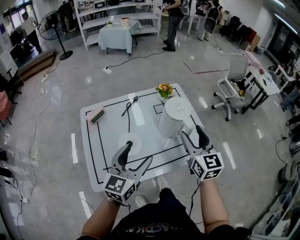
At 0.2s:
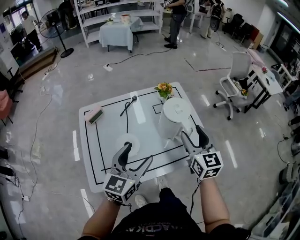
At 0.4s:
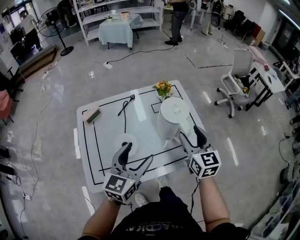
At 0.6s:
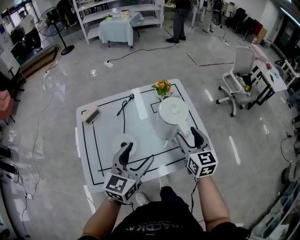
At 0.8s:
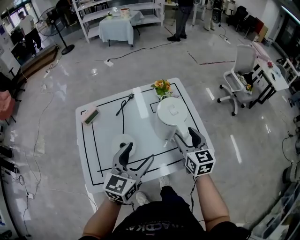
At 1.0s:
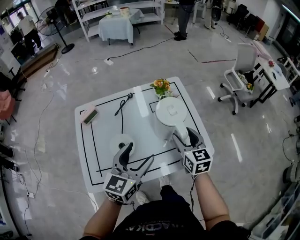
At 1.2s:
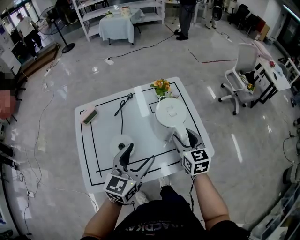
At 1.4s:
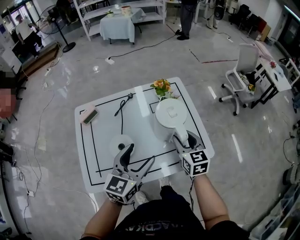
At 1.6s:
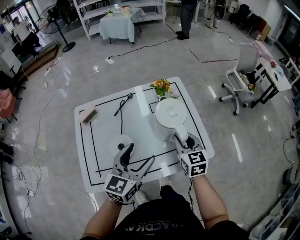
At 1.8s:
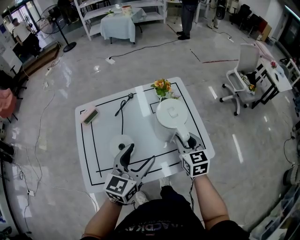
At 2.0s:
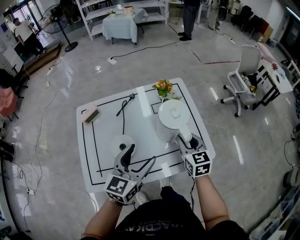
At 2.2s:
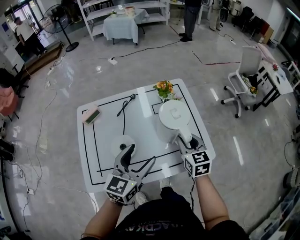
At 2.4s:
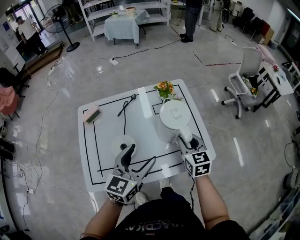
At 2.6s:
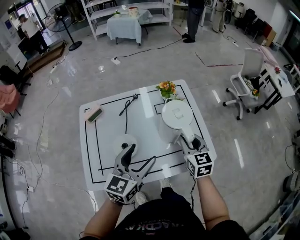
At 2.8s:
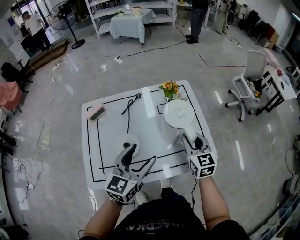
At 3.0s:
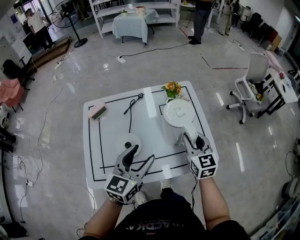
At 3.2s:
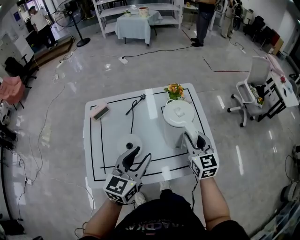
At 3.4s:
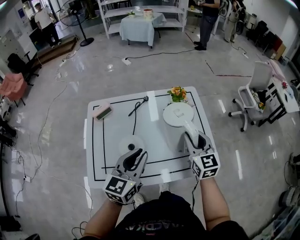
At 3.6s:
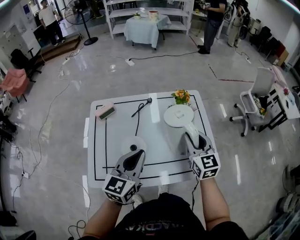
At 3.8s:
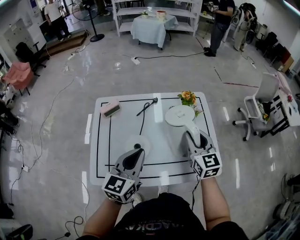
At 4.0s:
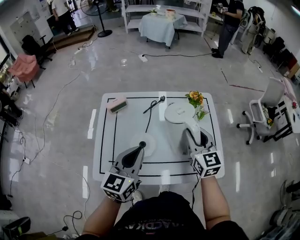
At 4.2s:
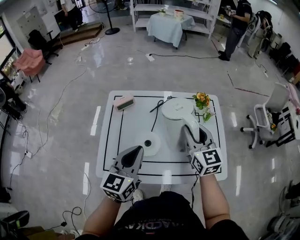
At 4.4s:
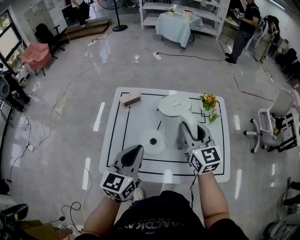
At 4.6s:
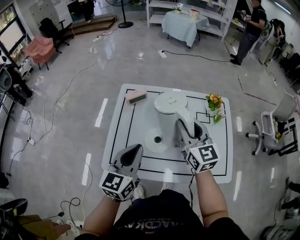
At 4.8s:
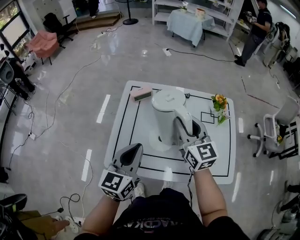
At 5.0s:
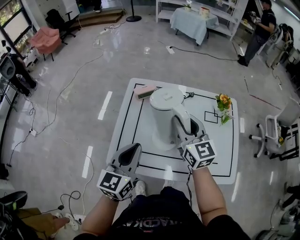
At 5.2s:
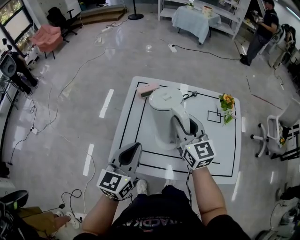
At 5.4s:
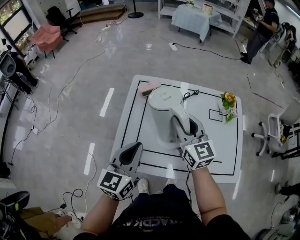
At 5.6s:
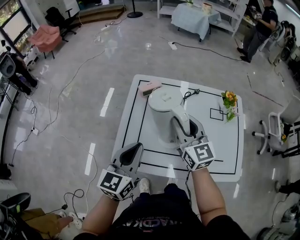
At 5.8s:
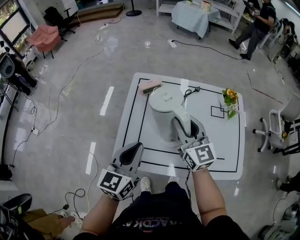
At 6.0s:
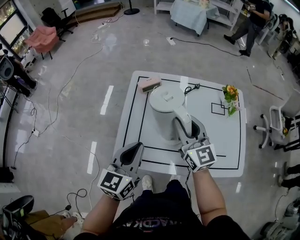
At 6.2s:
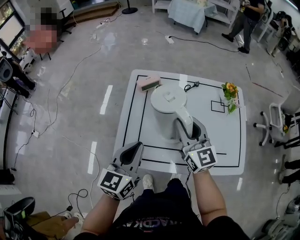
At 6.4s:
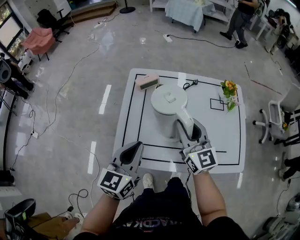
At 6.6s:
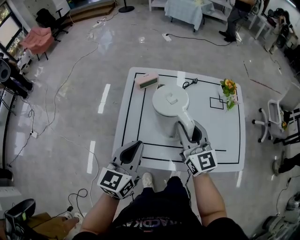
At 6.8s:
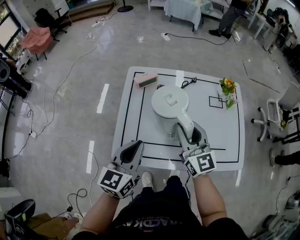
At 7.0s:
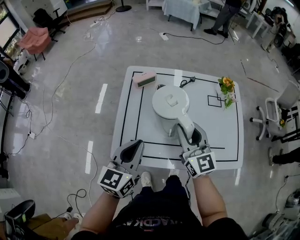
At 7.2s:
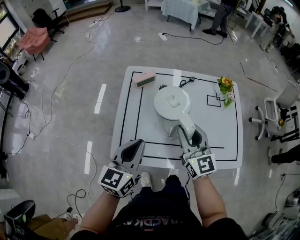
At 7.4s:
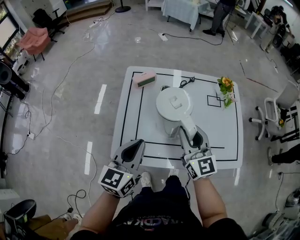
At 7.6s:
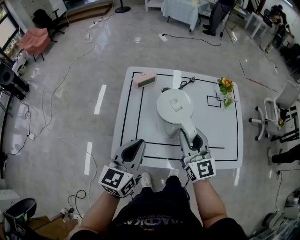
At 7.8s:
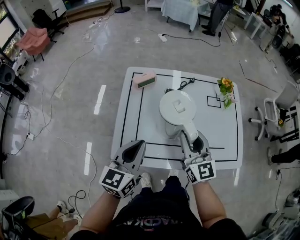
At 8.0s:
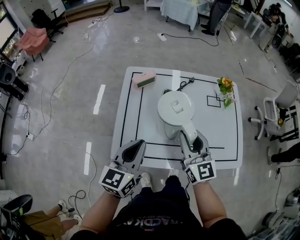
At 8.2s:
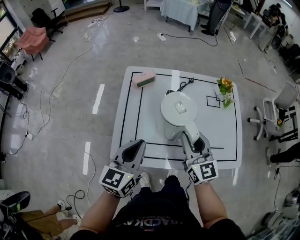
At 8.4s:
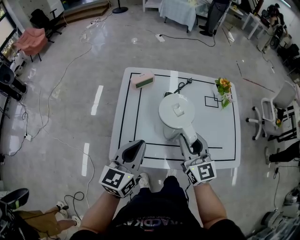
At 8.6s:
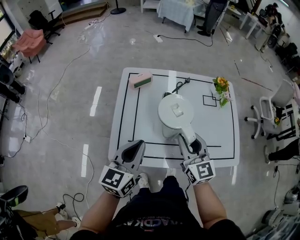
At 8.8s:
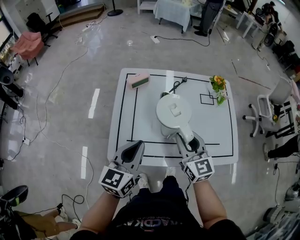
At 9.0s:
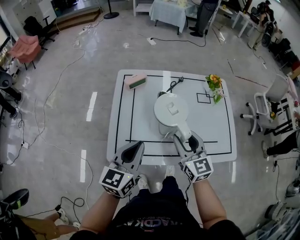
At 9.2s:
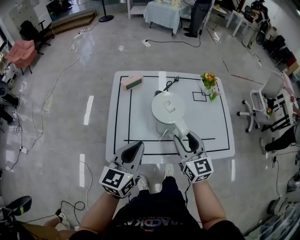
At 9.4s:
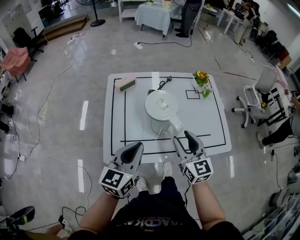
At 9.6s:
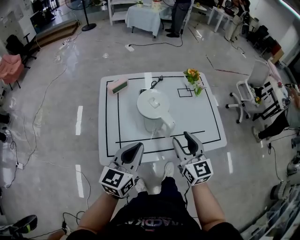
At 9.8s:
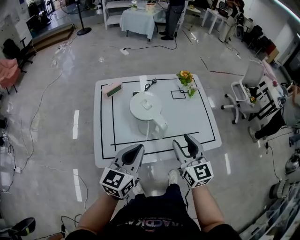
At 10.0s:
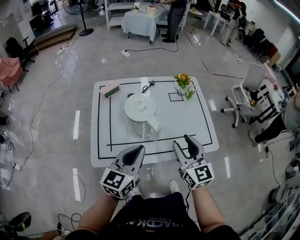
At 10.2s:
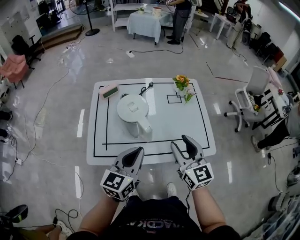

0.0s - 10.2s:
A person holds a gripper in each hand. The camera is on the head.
0.0s - 1.4s: The left gripper heads to the right and forward, covering about 10 cm; the right gripper heads downward and forward, covering roughly 15 cm.
1.4s - 3.0s: The grippers move only a little.
3.0s - 4.4s: The right gripper heads to the left and upward, covering some 20 cm, and changes its angle by roughly 20 degrees. The left gripper goes approximately 15 cm to the left, turns by approximately 20 degrees, and closes its fingers.
4.4s - 5.8s: The grippers both shift to the left by approximately 10 cm.
5.8s - 7.2s: The right gripper heads backward, covering about 5 cm.
7.2s - 8.8s: The grippers make only small movements.
8.8s - 10.2s: The right gripper is displaced to the right and backward by some 15 cm. The left gripper moves to the right, approximately 15 cm.

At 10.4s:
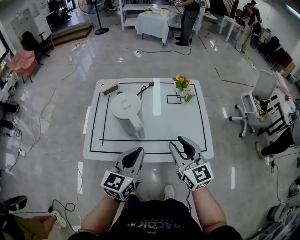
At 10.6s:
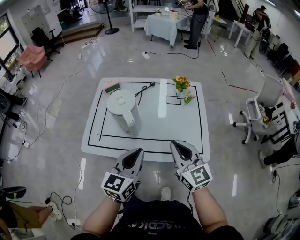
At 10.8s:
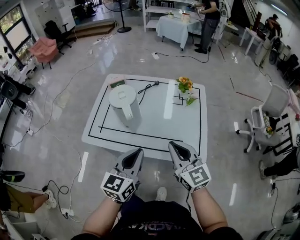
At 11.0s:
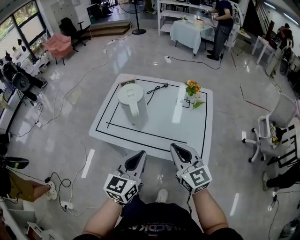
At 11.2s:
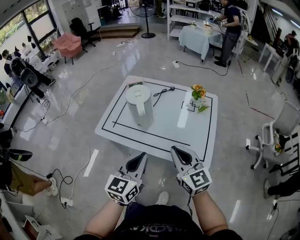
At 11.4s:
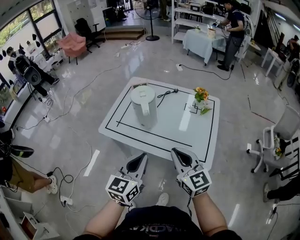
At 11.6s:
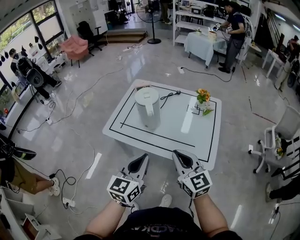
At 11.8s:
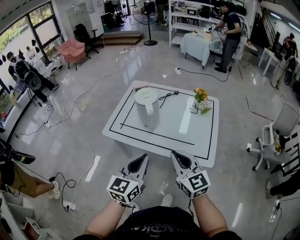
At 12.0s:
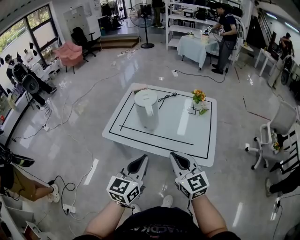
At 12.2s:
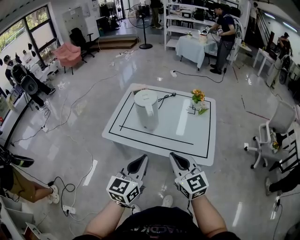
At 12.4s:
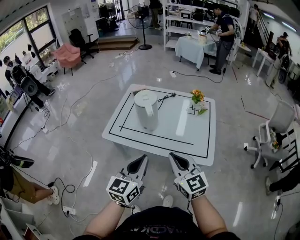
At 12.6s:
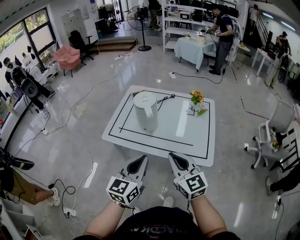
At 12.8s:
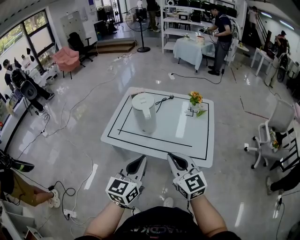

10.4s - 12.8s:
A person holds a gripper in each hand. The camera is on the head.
10.4s - 11.6s: The two grippers go about 10 cm backward. The left gripper changes its angle by roughly 20 degrees. Meanwhile the right gripper turns by approximately 20 degrees, and closes.
11.6s - 12.8s: The grippers make only small movements.

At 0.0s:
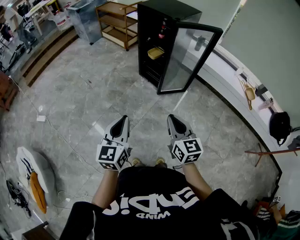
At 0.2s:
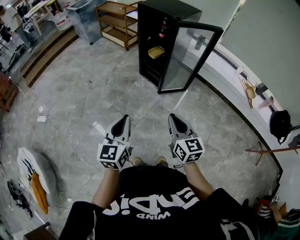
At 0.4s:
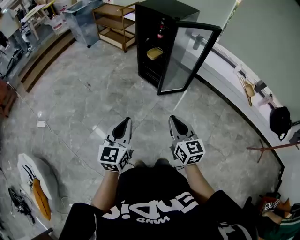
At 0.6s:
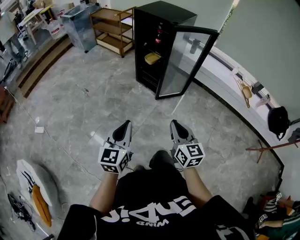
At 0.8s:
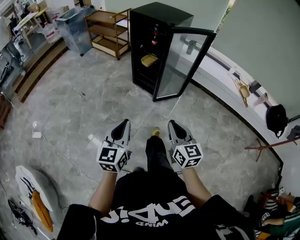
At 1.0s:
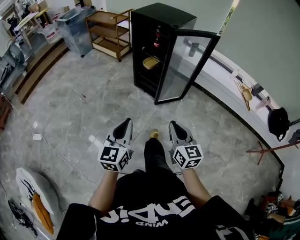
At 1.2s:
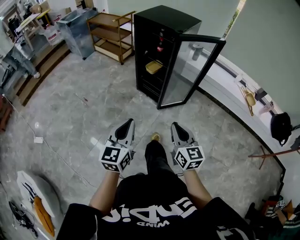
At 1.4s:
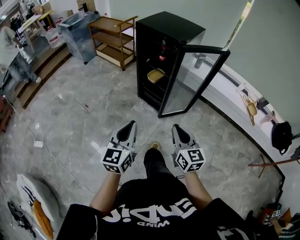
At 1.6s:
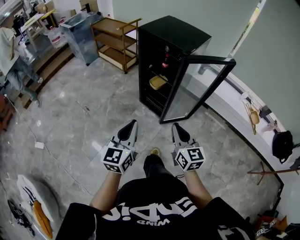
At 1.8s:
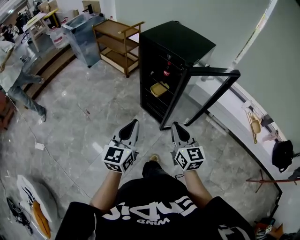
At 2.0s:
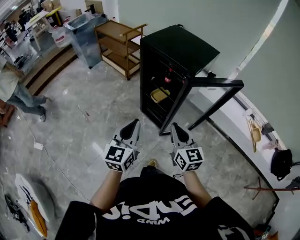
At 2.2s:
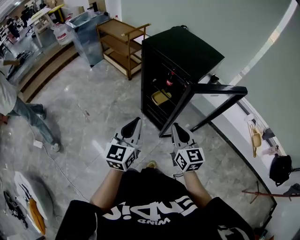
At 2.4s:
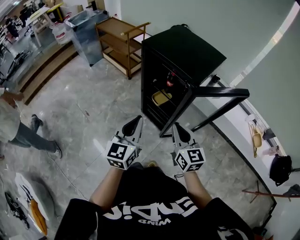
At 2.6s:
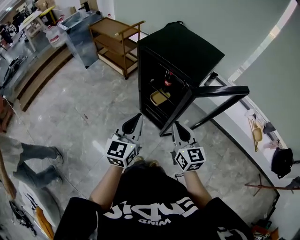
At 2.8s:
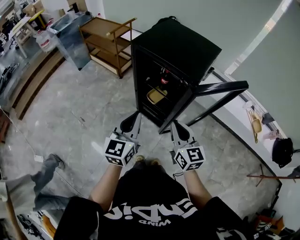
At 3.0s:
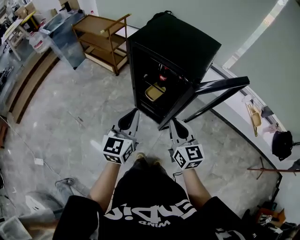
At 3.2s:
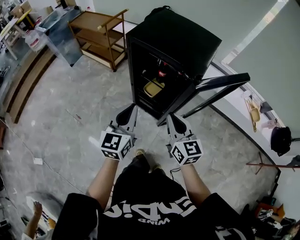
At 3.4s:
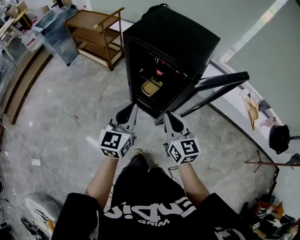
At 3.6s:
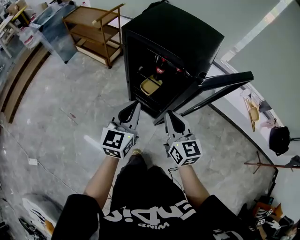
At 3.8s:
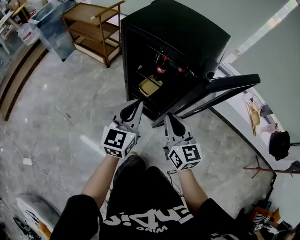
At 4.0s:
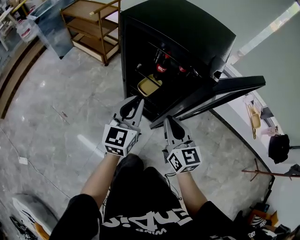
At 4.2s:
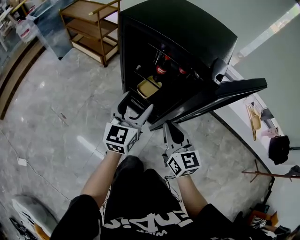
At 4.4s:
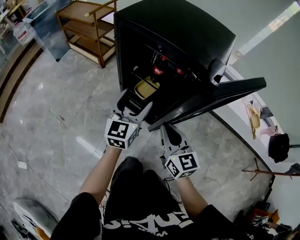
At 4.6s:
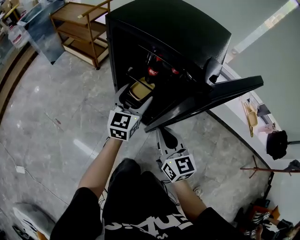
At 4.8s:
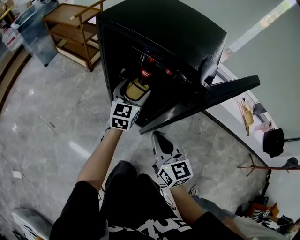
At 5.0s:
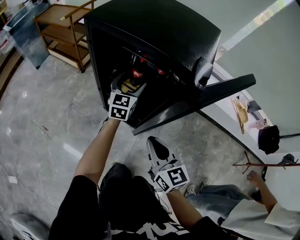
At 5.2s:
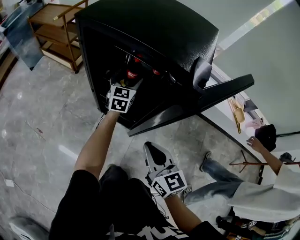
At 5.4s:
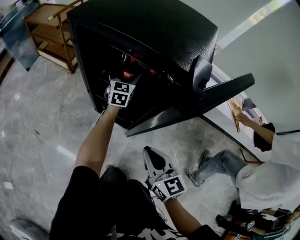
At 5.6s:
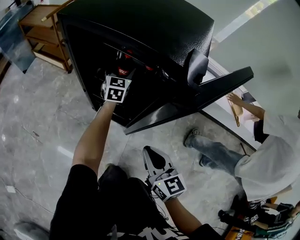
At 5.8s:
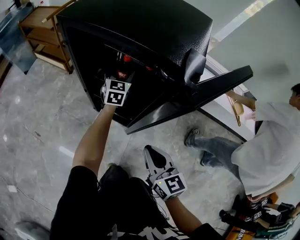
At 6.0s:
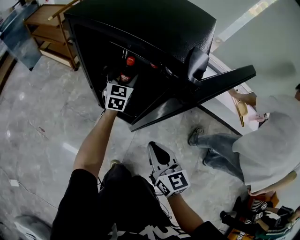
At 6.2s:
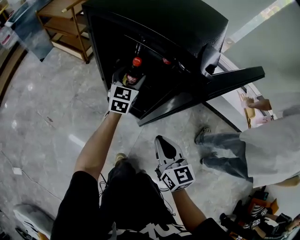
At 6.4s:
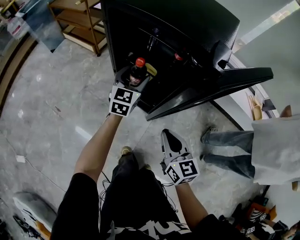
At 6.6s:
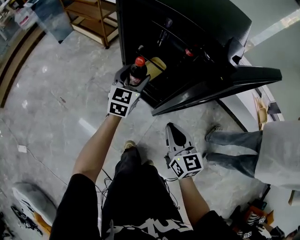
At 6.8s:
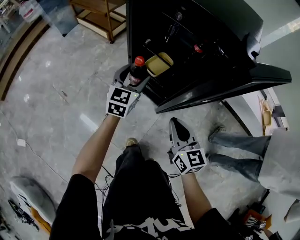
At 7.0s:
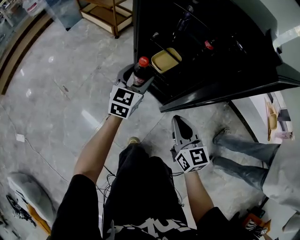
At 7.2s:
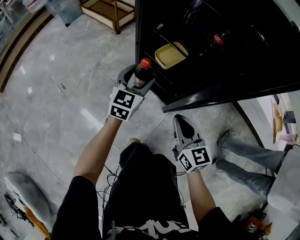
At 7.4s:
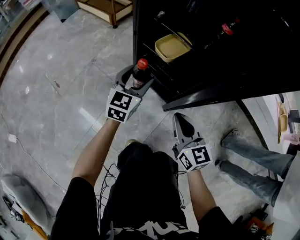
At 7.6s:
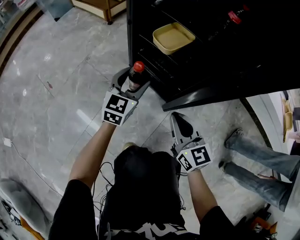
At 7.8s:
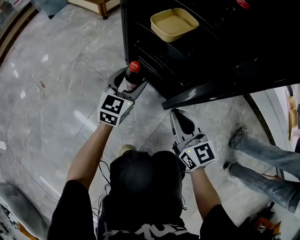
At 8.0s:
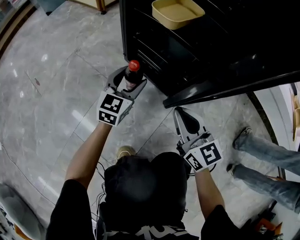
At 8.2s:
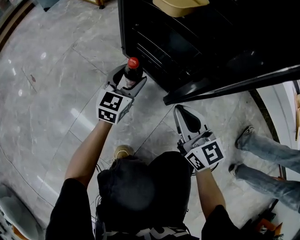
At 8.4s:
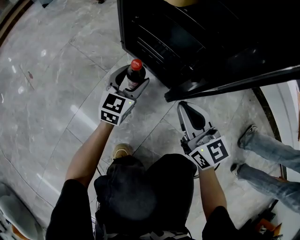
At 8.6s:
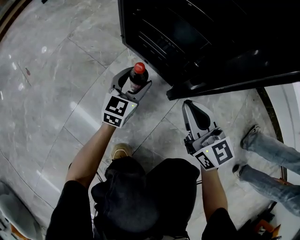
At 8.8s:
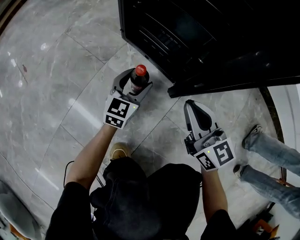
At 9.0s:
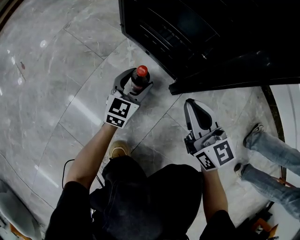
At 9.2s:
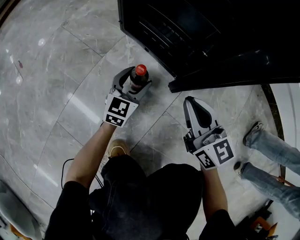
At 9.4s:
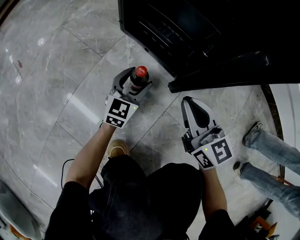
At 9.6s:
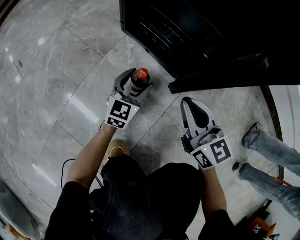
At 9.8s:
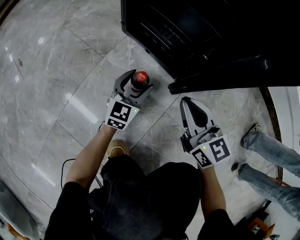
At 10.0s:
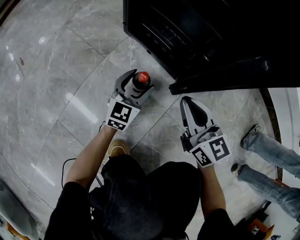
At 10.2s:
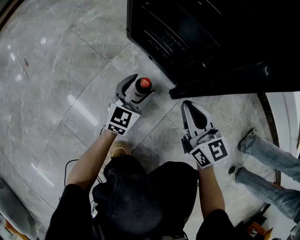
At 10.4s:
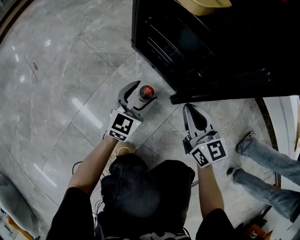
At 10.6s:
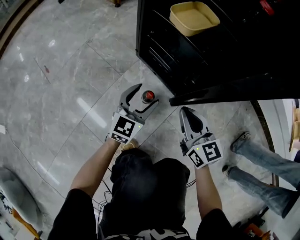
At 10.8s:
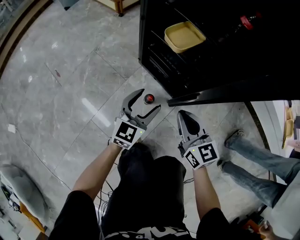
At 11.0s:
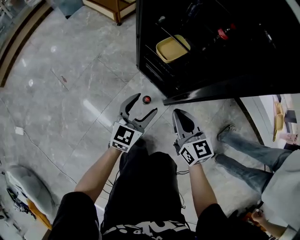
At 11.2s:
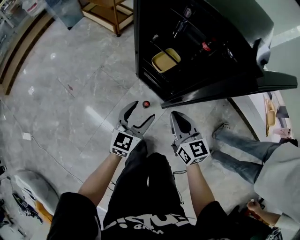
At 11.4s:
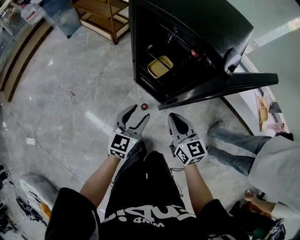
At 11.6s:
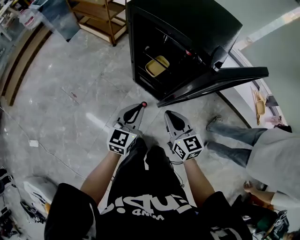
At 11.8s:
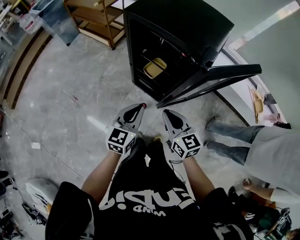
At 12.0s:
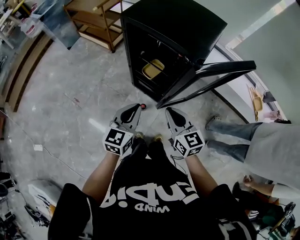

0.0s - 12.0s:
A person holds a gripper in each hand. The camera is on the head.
0.0s - 1.6s: Both grippers move forward, some 25 cm.
1.6s - 3.0s: Both grippers travel together forward, about 25 cm.
3.0s - 4.4s: The right gripper travels downward by some 15 cm. Meanwhile the left gripper goes approximately 20 cm downward and forward, and opens.
4.4s - 6.0s: The left gripper goes approximately 25 cm forward, downward and to the right; the right gripper is displaced downward and to the right by roughly 10 cm.
6.0s - 7.6s: The right gripper shifts about 30 cm downward. The left gripper is displaced downward, backward and to the left by some 35 cm.
7.6s - 9.0s: The left gripper goes approximately 30 cm downward. The right gripper travels downward by approximately 20 cm.
9.0s - 10.4s: The left gripper shifts roughly 10 cm upward.
10.4s - 12.0s: Both grippers move upward, roughly 60 cm. The left gripper closes.
